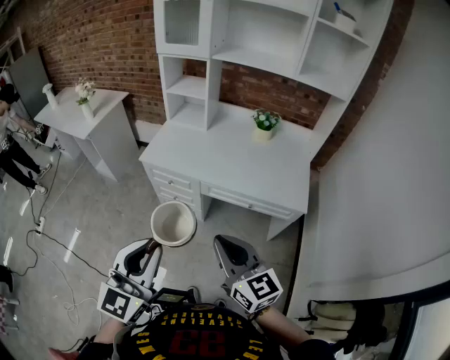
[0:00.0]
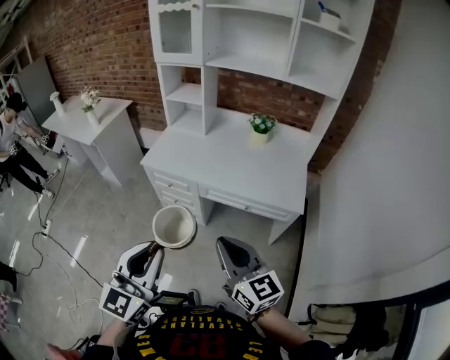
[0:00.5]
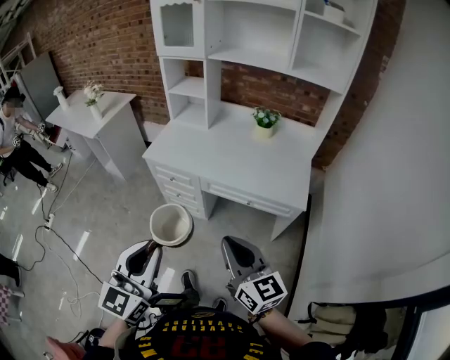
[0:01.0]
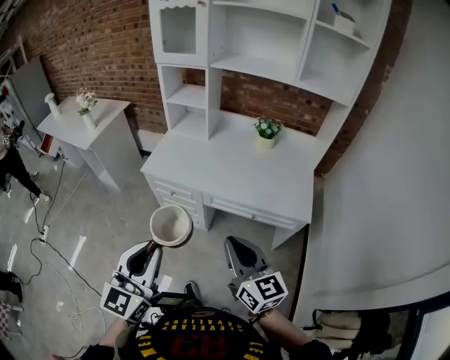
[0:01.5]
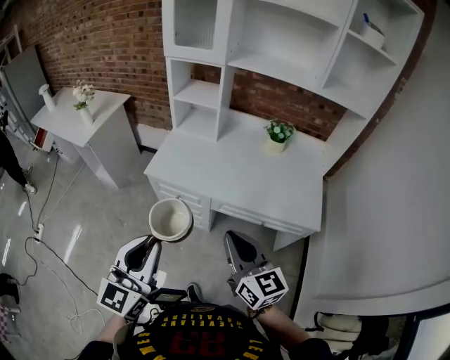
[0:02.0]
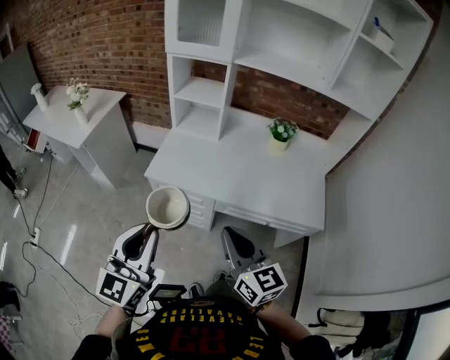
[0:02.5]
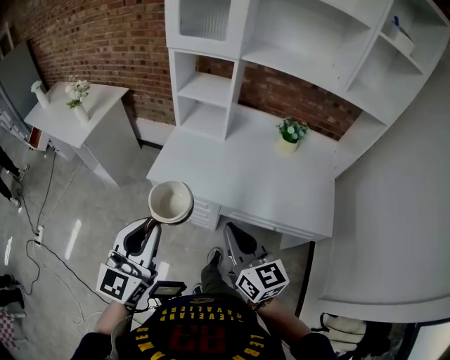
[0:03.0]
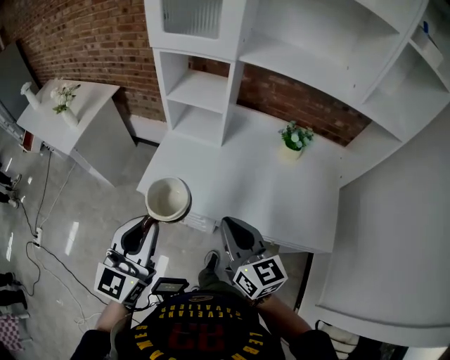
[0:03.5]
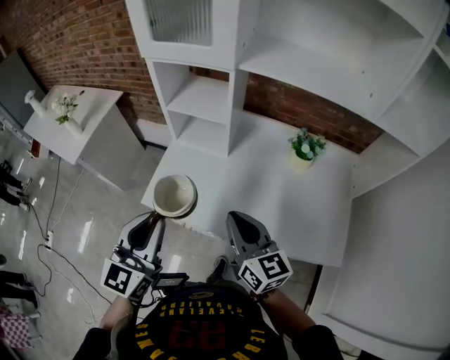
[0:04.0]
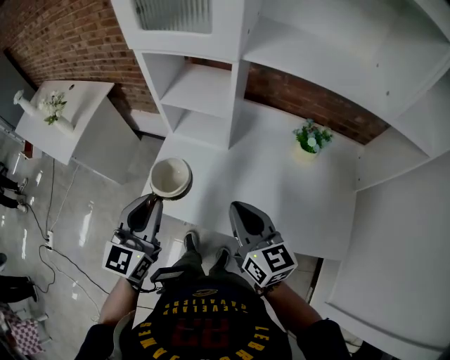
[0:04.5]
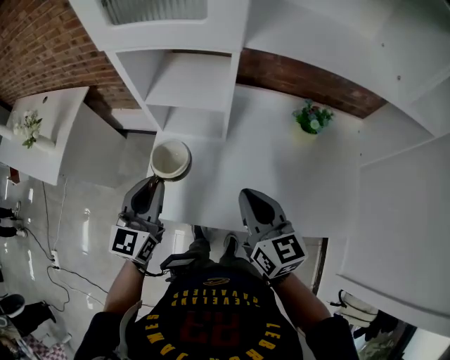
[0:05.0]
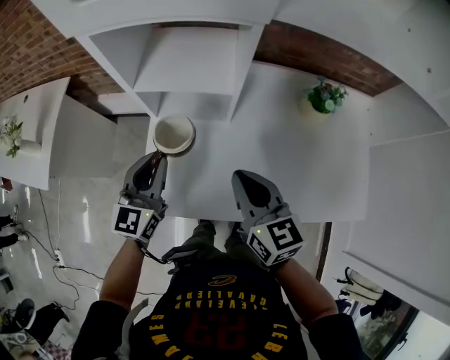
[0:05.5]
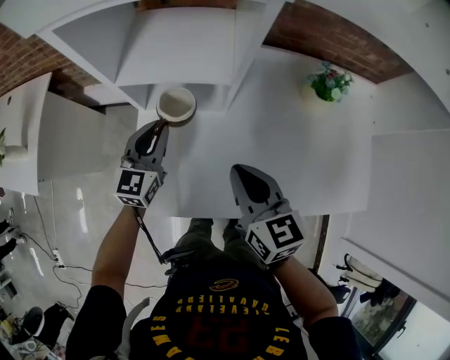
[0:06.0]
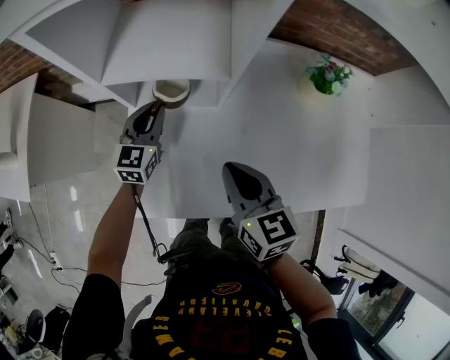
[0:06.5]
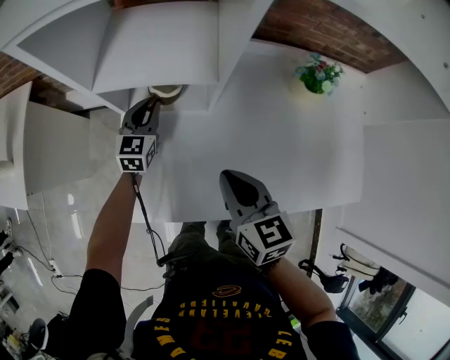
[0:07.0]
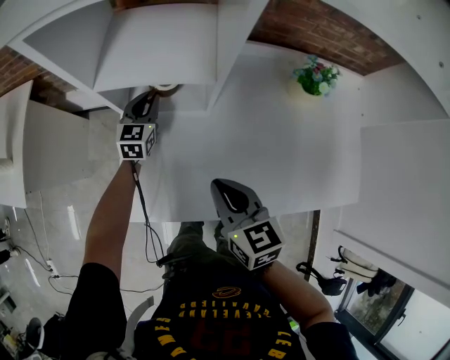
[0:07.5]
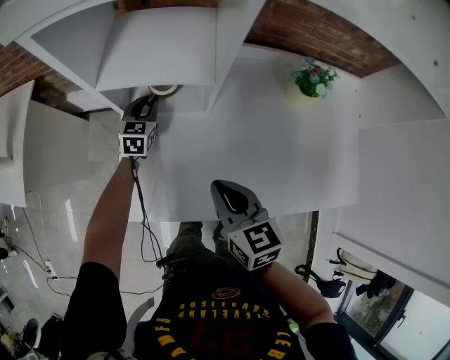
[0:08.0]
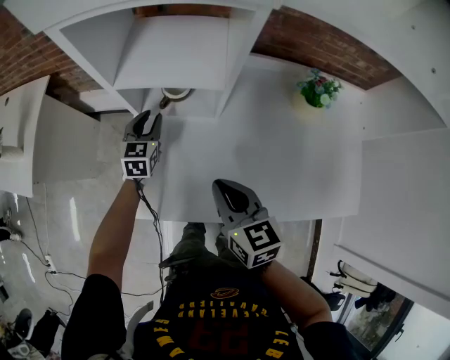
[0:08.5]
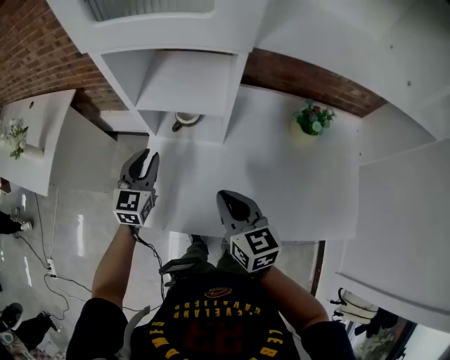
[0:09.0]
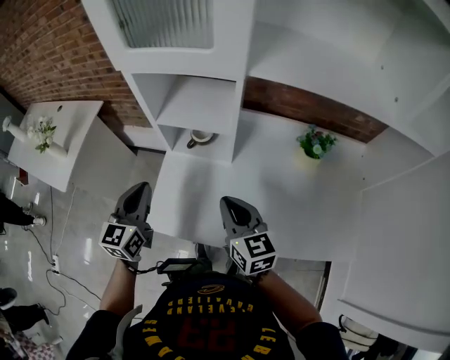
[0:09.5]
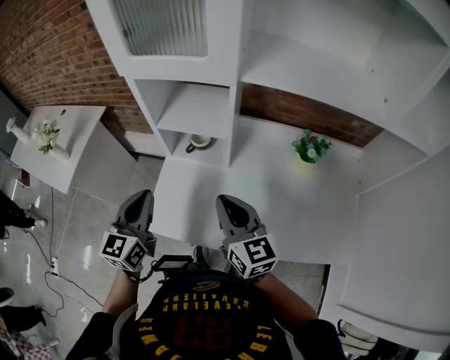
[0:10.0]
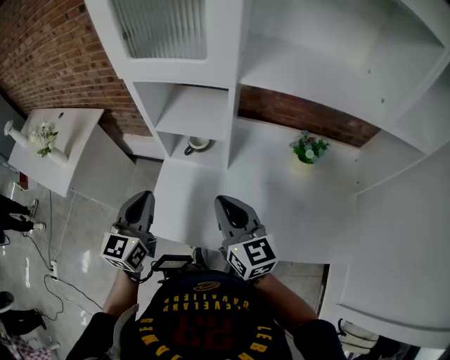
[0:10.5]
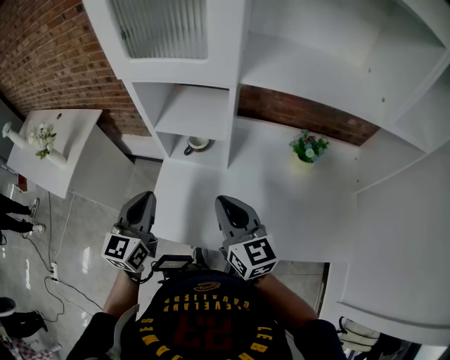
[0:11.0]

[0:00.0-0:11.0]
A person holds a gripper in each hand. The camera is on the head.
0:00.0 to 0:02.0: The right gripper shifts about 15 cm forward; the left gripper goes about 15 cm forward and to the left.
0:02.0 to 0:03.5: The two grippers go roughly 25 cm forward.
0:03.5 to 0:05.5: The left gripper shifts approximately 40 cm forward and downward, while the right gripper moves forward, some 25 cm.
0:05.5 to 0:07.5: The left gripper moves forward and downward, about 30 cm; the right gripper heads downward, covering some 10 cm.
0:07.5 to 0:09.0: The left gripper heads backward, upward and to the left, covering some 20 cm. Meanwhile the right gripper heads upward, covering approximately 5 cm.
0:09.0 to 0:11.0: The right gripper goes approximately 10 cm upward; the left gripper is displaced upward and backward by roughly 20 cm, and closes its fingers.

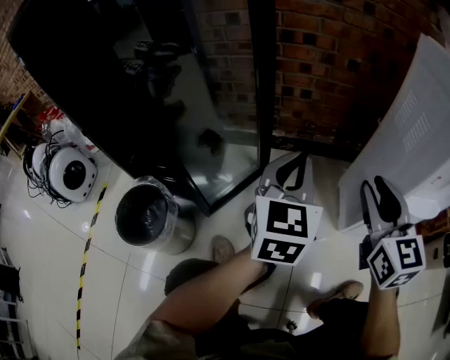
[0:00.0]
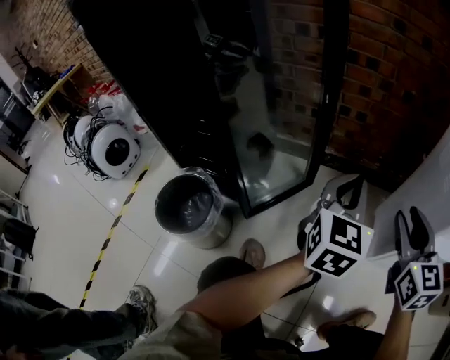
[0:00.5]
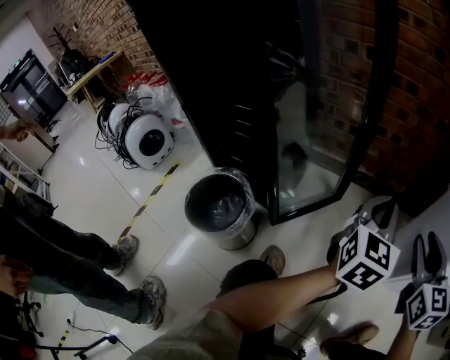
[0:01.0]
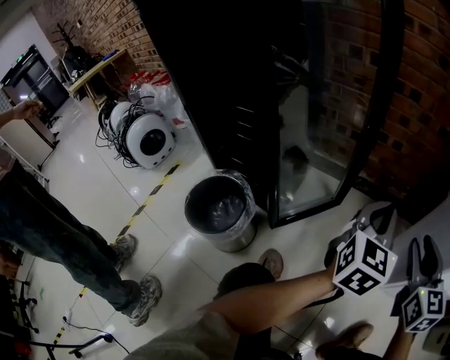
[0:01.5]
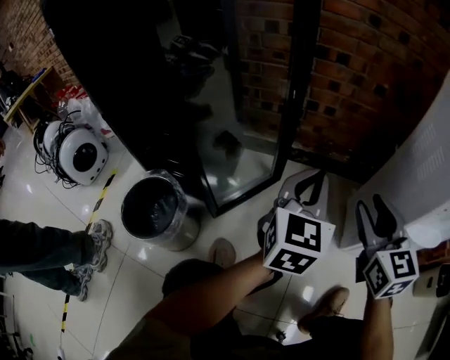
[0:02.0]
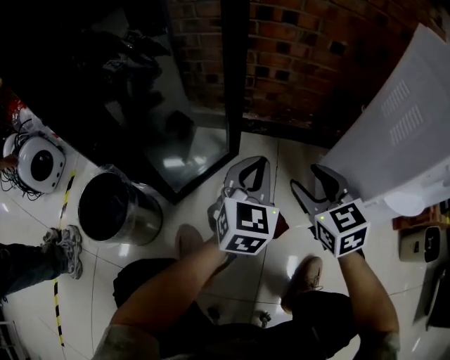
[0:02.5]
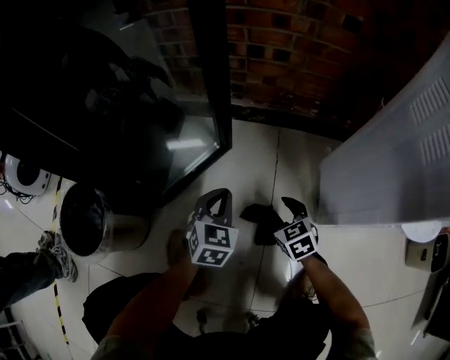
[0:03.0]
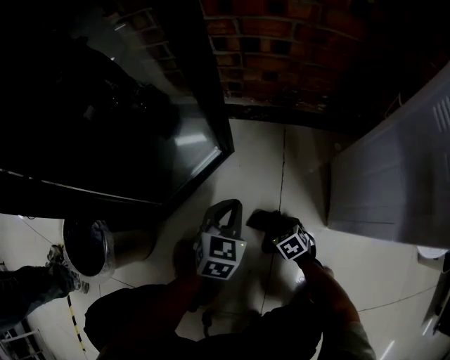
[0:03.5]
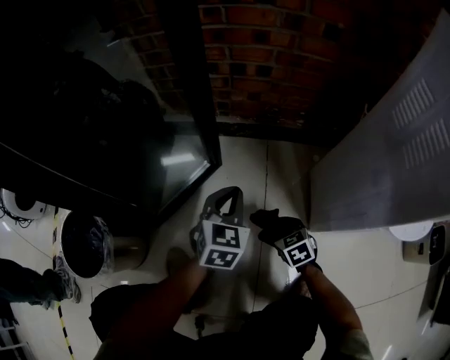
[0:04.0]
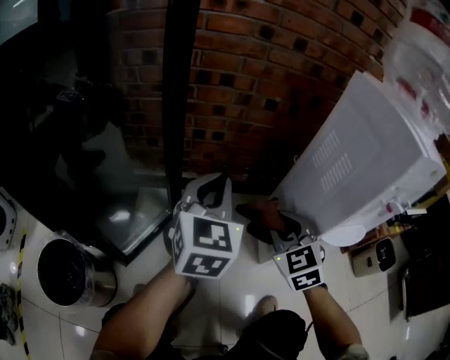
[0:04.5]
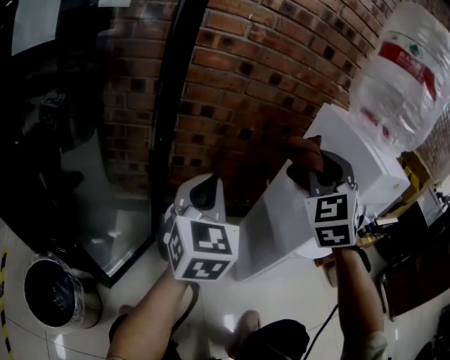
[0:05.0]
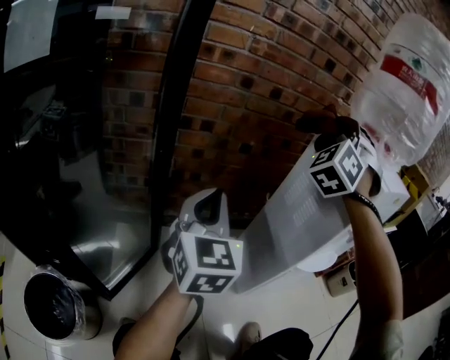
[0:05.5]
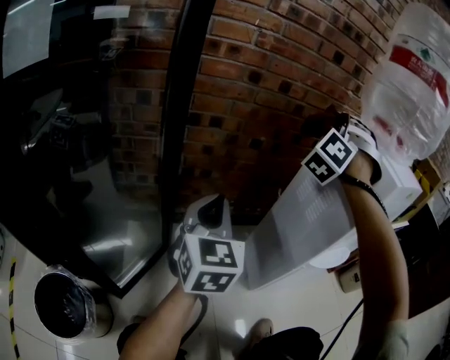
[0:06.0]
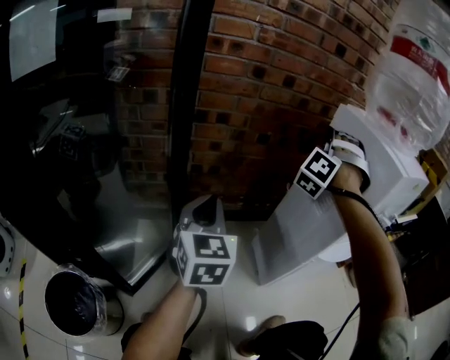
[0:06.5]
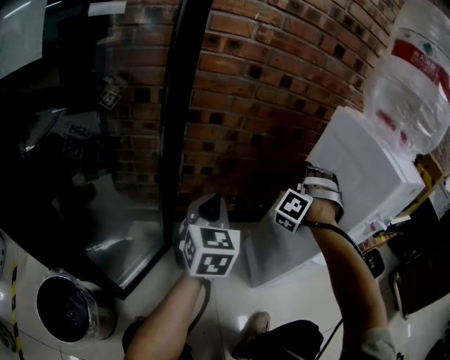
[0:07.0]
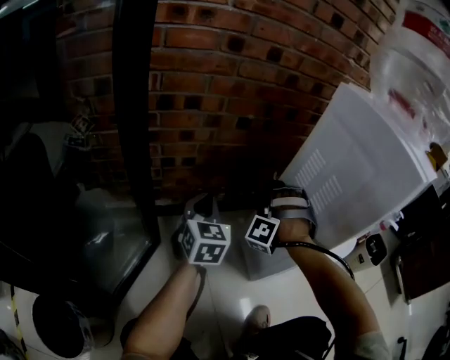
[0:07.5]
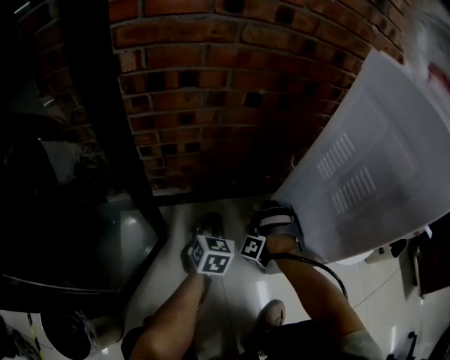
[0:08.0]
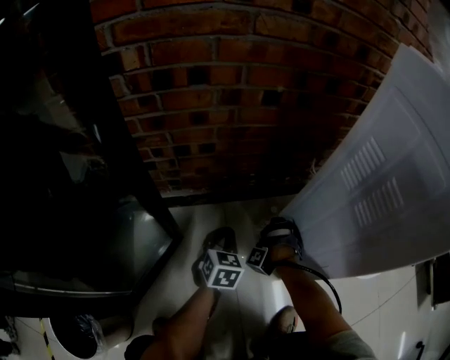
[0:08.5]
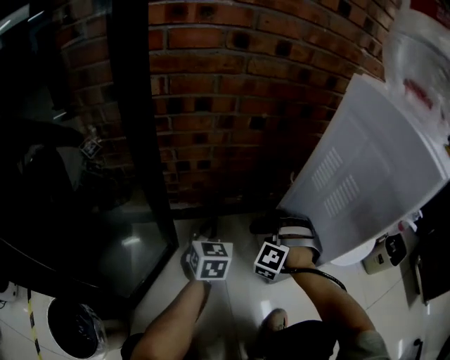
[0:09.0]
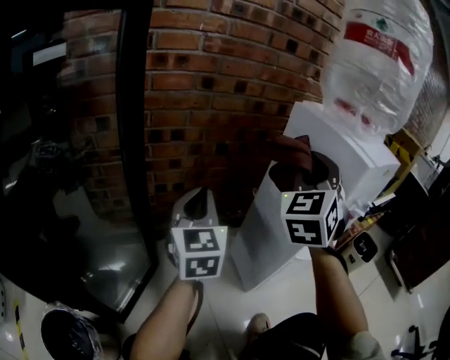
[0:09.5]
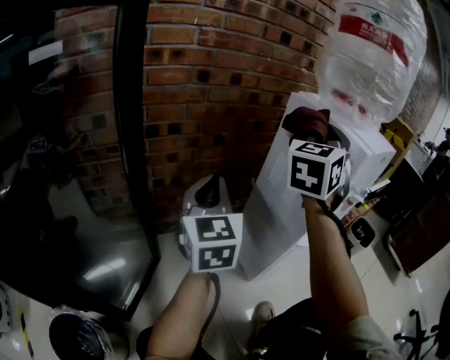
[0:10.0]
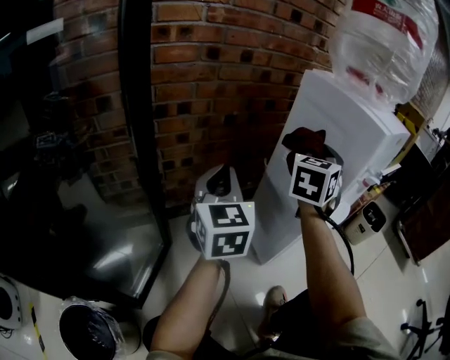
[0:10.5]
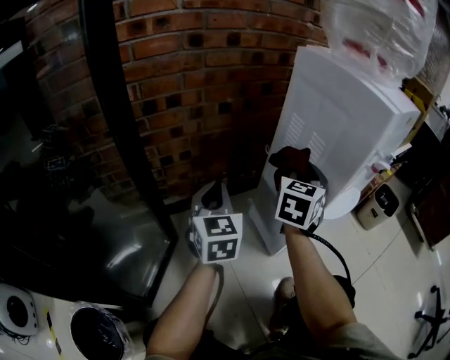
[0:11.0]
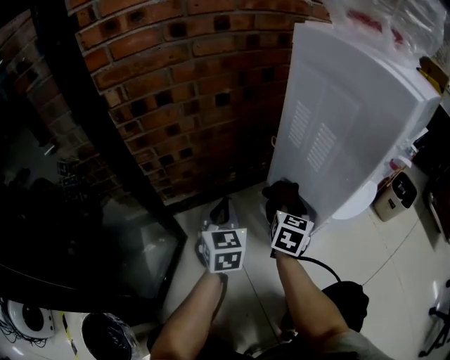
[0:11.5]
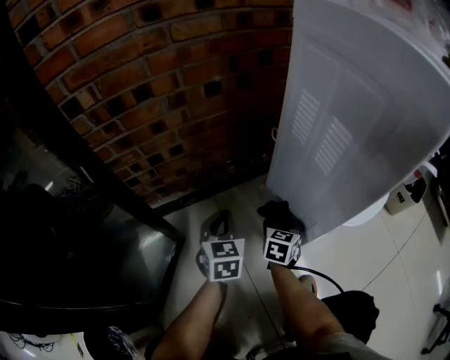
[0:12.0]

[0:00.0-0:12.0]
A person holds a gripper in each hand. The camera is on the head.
0:00.0 to 0:02.0: The grippers move only a little.
0:02.0 to 0:04.0: The left gripper heads downward, covering about 25 cm, and changes its angle by about 20 degrees. Meanwhile the right gripper is displaced downward by roughly 40 cm, tilts its fingers roughly 40 degrees downward, and closes.
0:04.0 to 0:06.0: The right gripper travels upward by some 70 cm, and points its fingers approximately 60 degrees further upward. The left gripper is displaced upward by some 30 cm, and rotates about 20 degrees.
0:06.0 to 0:08.0: The right gripper moves downward, about 50 cm, and twists approximately 40 degrees counterclockwise, seen from behind. The left gripper goes roughly 30 cm downward, and turns by some 30 degrees.
0:08.0 to 0:10.0: The two grippers go some 50 cm upward. The left gripper points its fingers about 30 degrees further upward; the right gripper twists about 100 degrees clockwise, seen from behind.
0:10.0 to 0:12.0: The left gripper shifts roughly 30 cm downward, and swivels some 30 degrees. The right gripper is displaced downward by about 60 cm, and angles its fingers downward, by about 40 degrees.

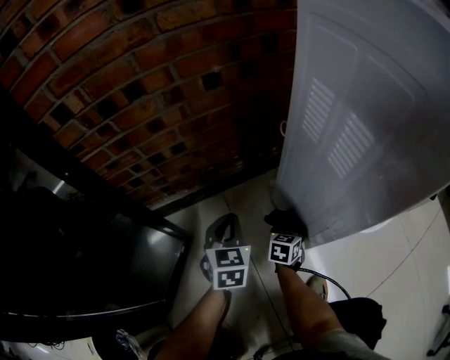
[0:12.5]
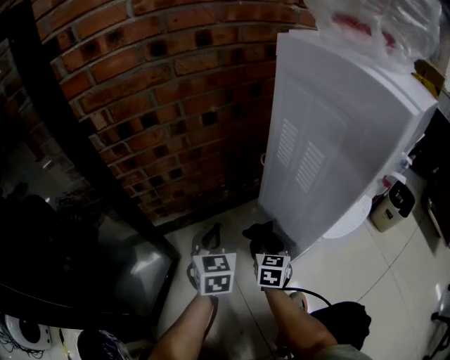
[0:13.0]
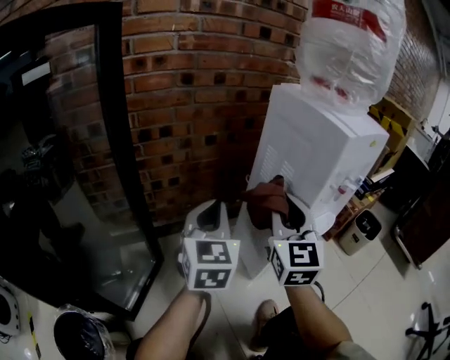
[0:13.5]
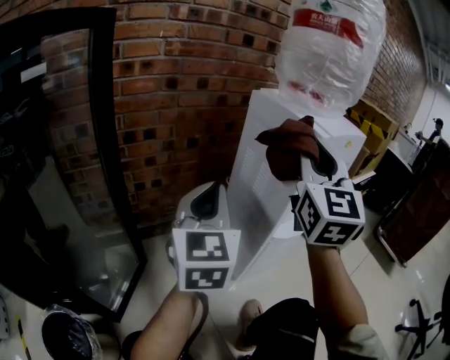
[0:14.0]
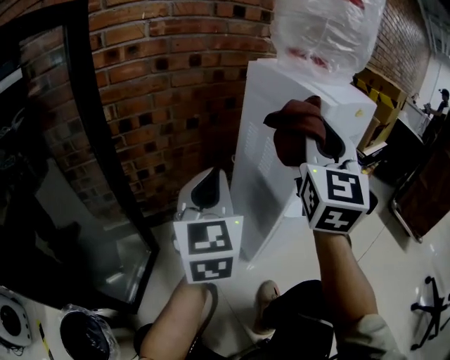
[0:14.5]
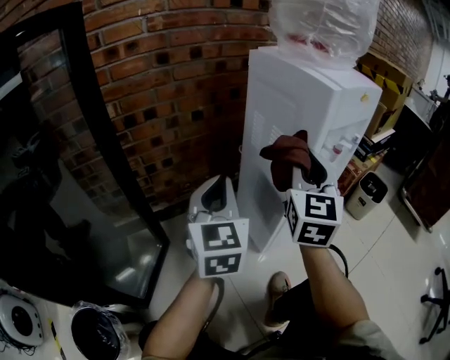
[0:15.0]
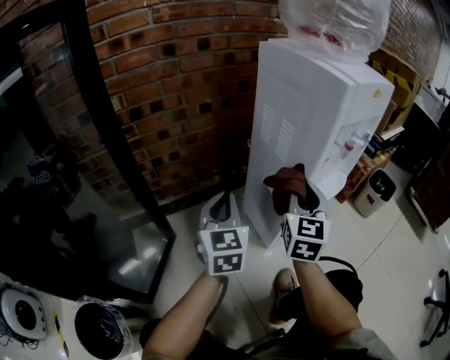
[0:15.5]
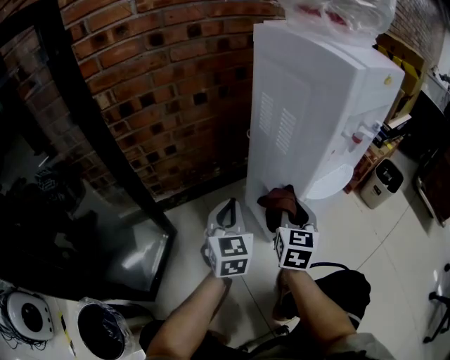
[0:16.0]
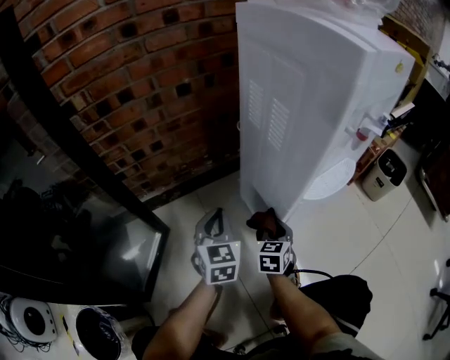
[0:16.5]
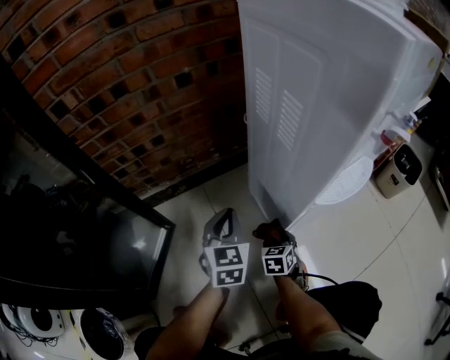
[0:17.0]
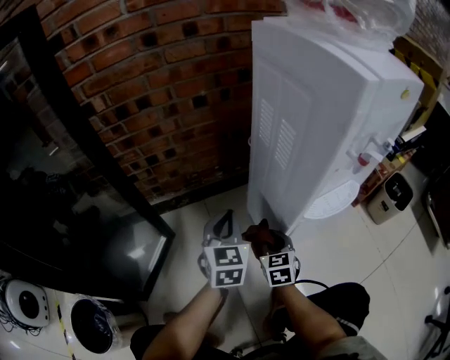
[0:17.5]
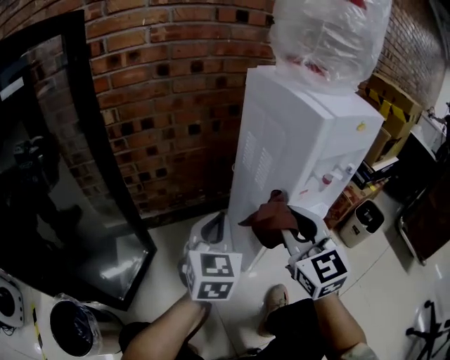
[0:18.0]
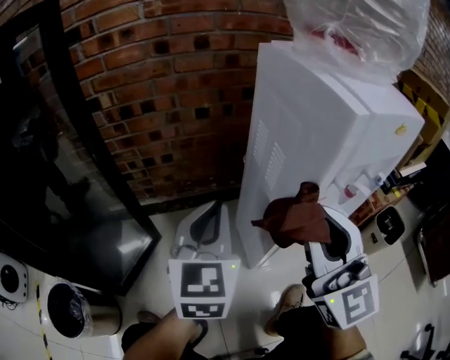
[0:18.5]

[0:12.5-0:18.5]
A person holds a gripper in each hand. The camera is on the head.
0:12.5 to 0:14.5: The right gripper travels upward by roughly 60 cm, and tilts its fingers some 60 degrees upward. The left gripper travels upward by some 35 cm, and tilts its fingers approximately 30 degrees upward.
0:14.5 to 0:16.5: The right gripper is displaced downward by approximately 50 cm, and tips its fingers downward by about 50 degrees. The left gripper travels downward by about 30 cm, and swivels roughly 20 degrees.
0:16.5 to 0:18.5: The right gripper is displaced upward by roughly 40 cm, and points its fingers roughly 40 degrees further upward. The left gripper heads upward, covering about 20 cm.
